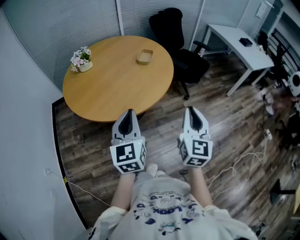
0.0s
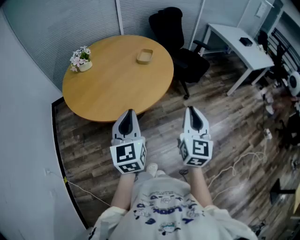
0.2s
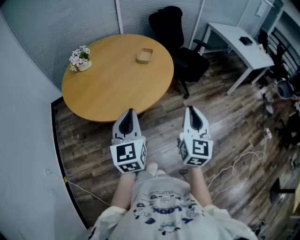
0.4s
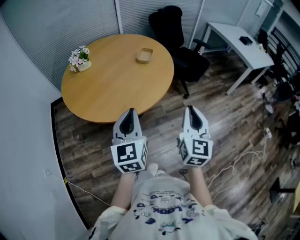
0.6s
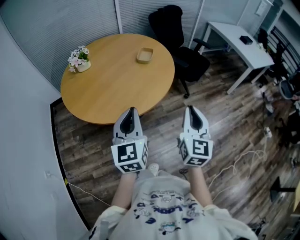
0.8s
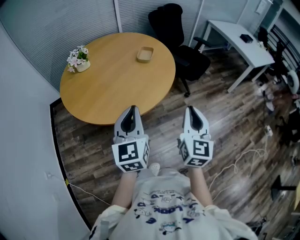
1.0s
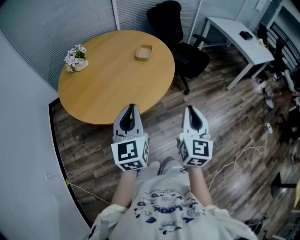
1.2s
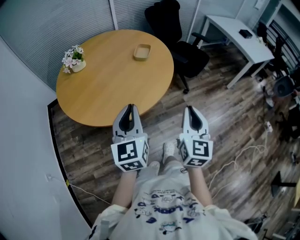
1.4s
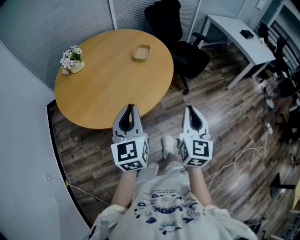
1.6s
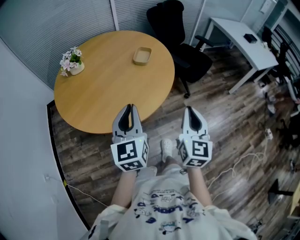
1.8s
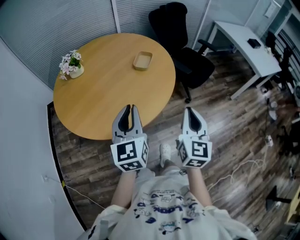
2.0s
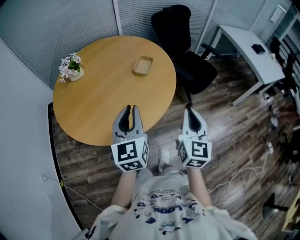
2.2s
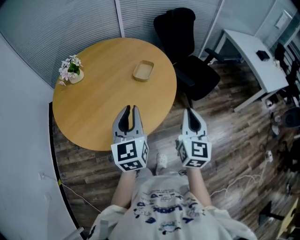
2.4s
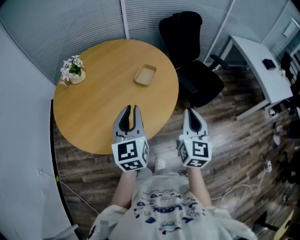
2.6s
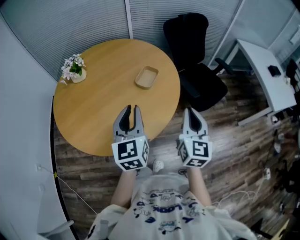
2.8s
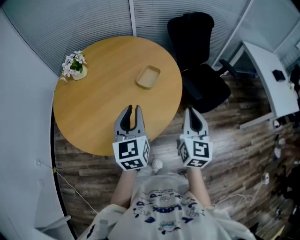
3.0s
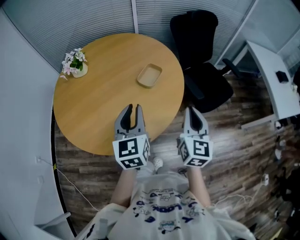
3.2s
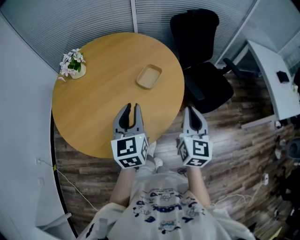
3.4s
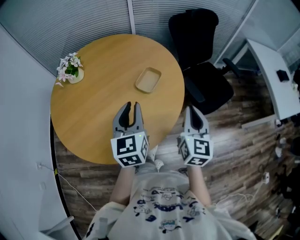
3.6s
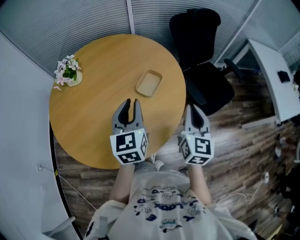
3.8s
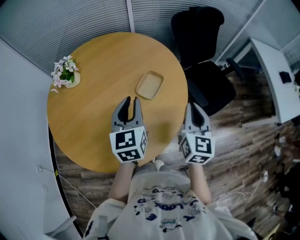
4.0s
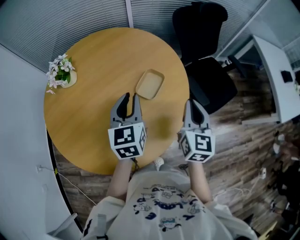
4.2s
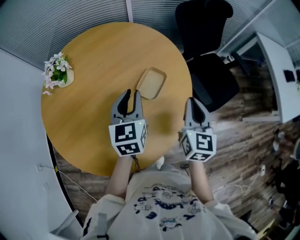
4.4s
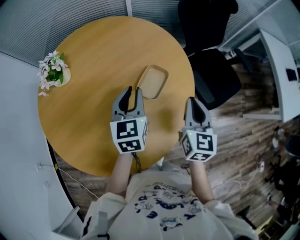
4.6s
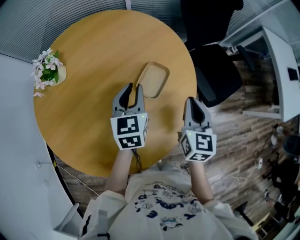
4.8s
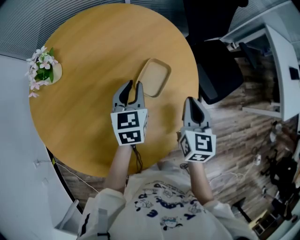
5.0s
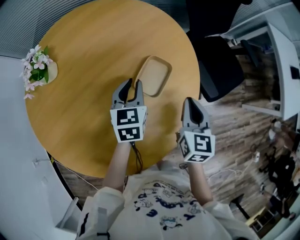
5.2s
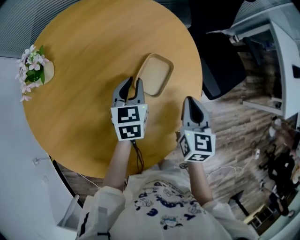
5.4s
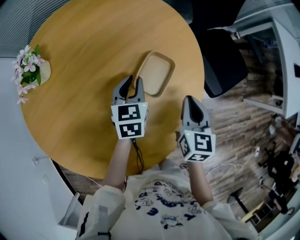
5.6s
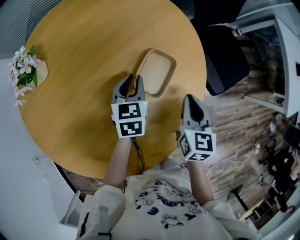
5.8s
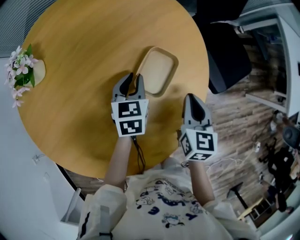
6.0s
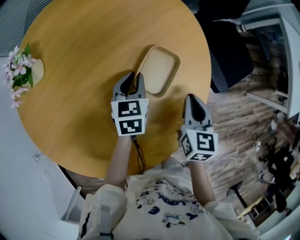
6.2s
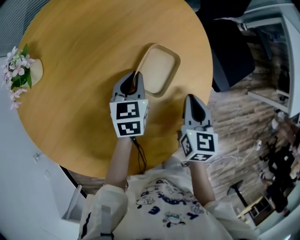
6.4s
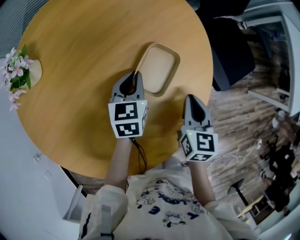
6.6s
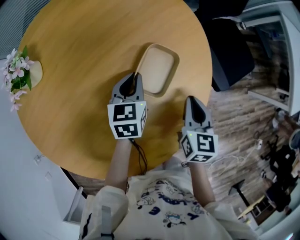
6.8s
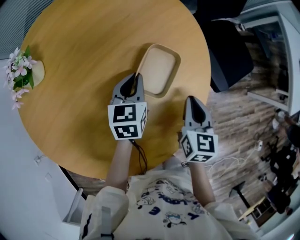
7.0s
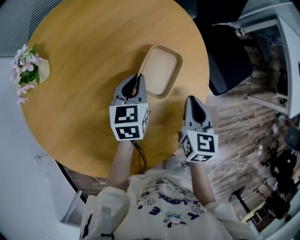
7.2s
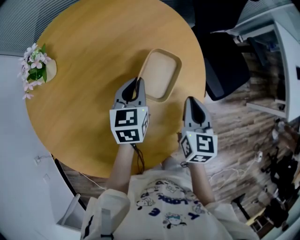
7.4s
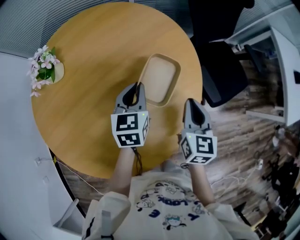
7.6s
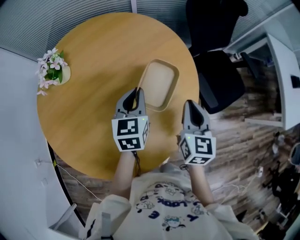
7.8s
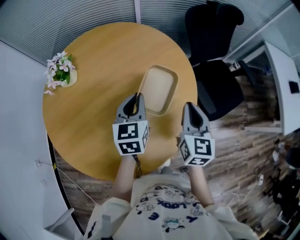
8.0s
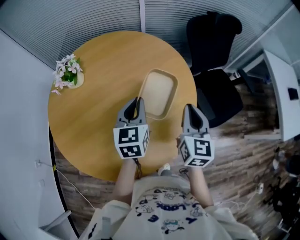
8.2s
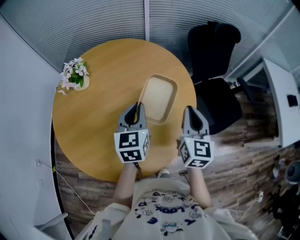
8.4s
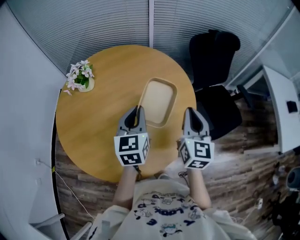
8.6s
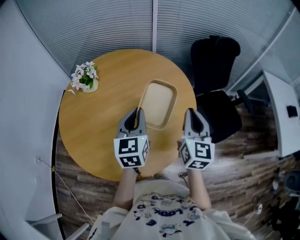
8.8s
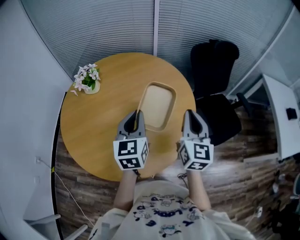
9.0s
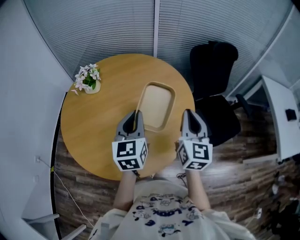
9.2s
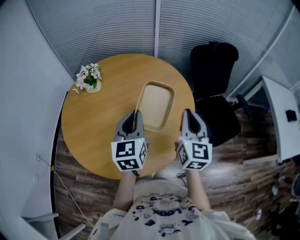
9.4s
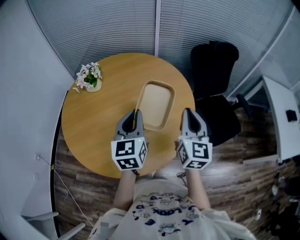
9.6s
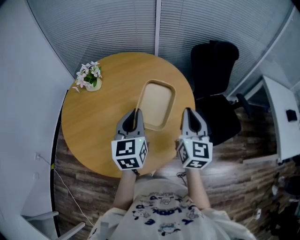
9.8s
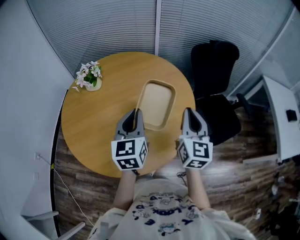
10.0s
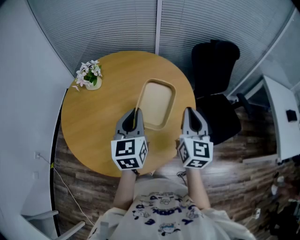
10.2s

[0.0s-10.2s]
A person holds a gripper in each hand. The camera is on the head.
0.0s to 1.4s: The right gripper ends up some 5 cm from where it was. Meanwhile the left gripper is displaced forward by roughly 5 cm.
1.4s to 3.0s: Both grippers move forward, about 30 cm.
3.0s to 4.4s: The two grippers go roughly 20 cm forward.
4.4s to 5.8s: The right gripper heads downward, covering about 15 cm; the left gripper goes approximately 20 cm downward and forward, and rotates some 20 degrees.
5.8s to 7.2s: The grippers move only a little.
7.2s to 8.8s: The left gripper heads upward and backward, covering some 30 cm, and turns by approximately 30 degrees; the right gripper is displaced upward by roughly 25 cm, and turns by roughly 30 degrees.
8.8s to 10.2s: The grippers move only a little.

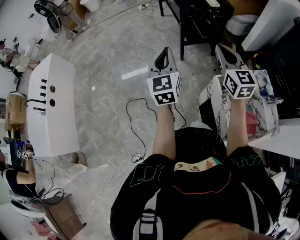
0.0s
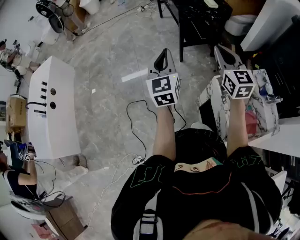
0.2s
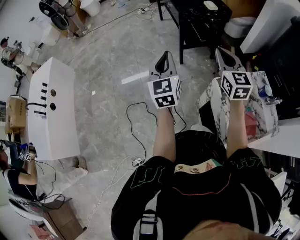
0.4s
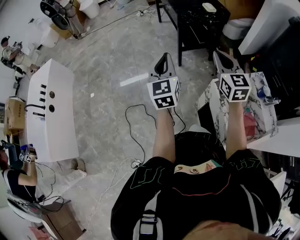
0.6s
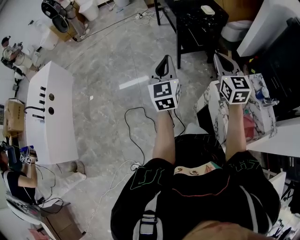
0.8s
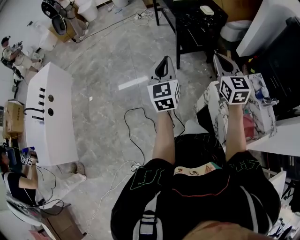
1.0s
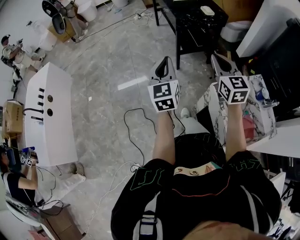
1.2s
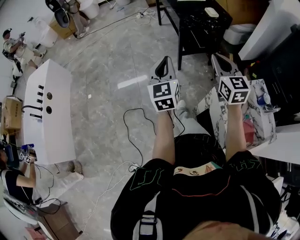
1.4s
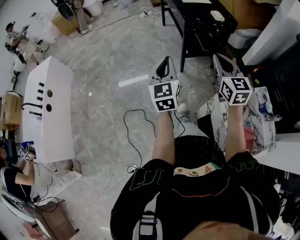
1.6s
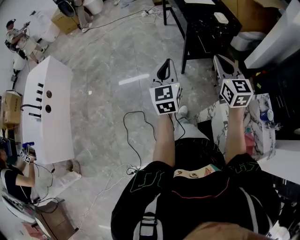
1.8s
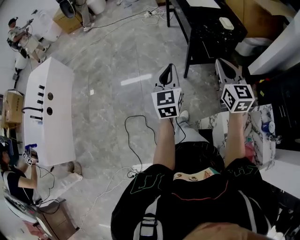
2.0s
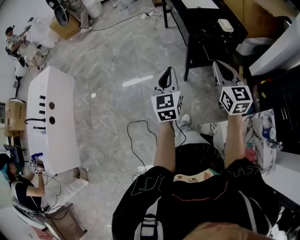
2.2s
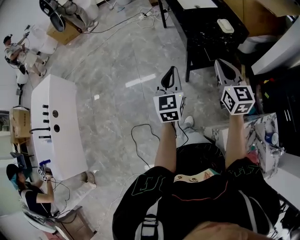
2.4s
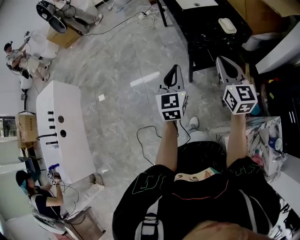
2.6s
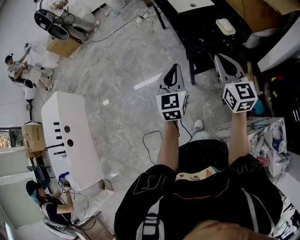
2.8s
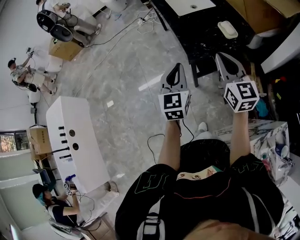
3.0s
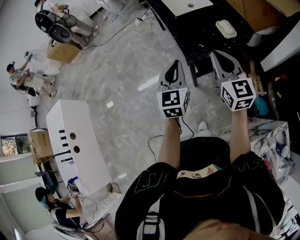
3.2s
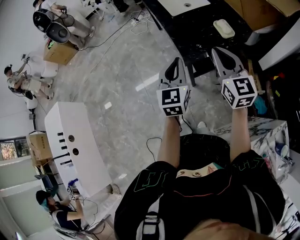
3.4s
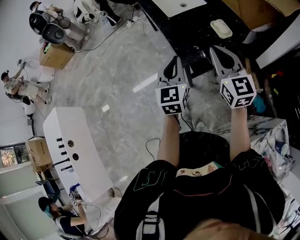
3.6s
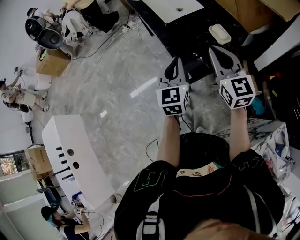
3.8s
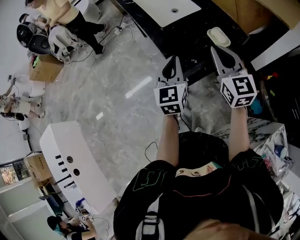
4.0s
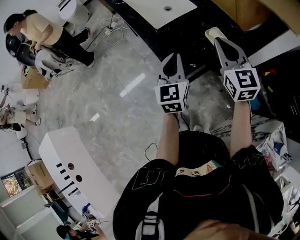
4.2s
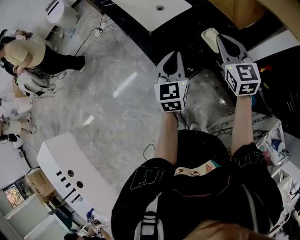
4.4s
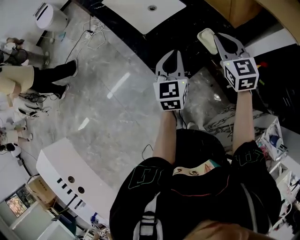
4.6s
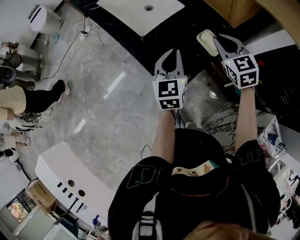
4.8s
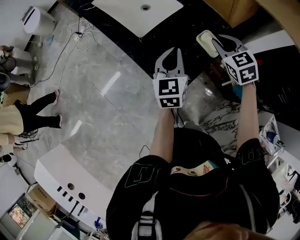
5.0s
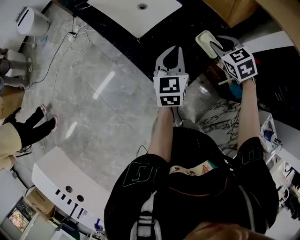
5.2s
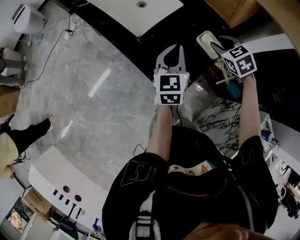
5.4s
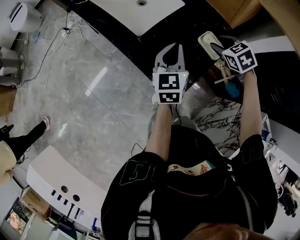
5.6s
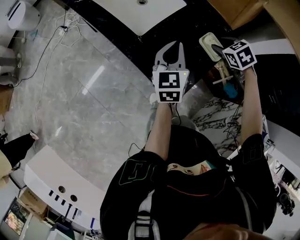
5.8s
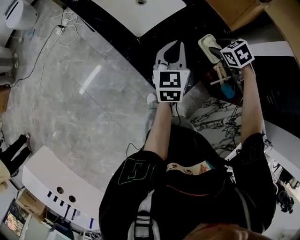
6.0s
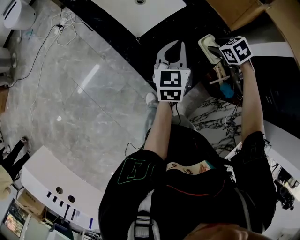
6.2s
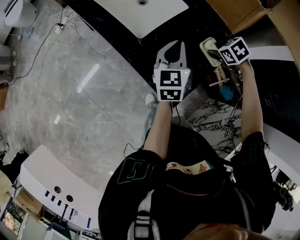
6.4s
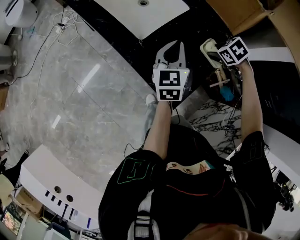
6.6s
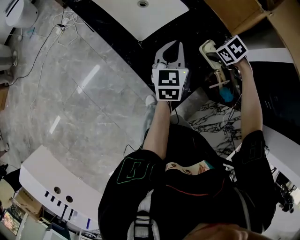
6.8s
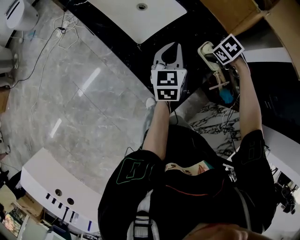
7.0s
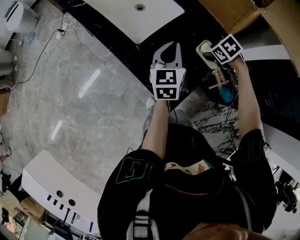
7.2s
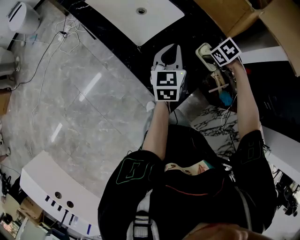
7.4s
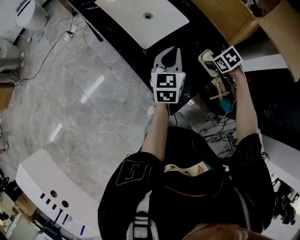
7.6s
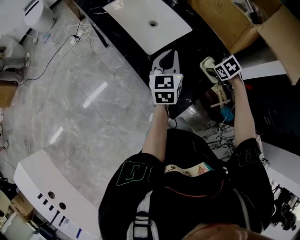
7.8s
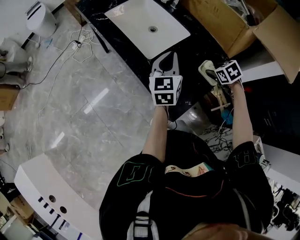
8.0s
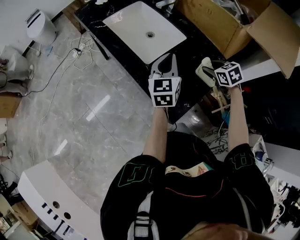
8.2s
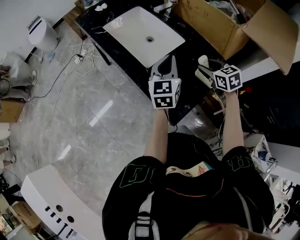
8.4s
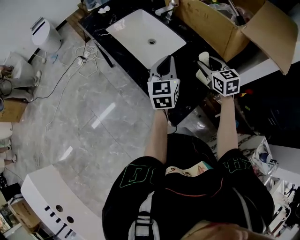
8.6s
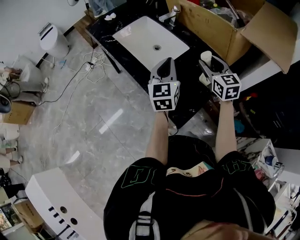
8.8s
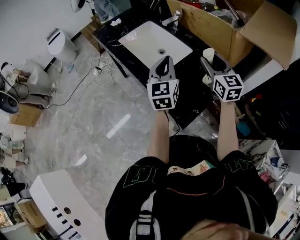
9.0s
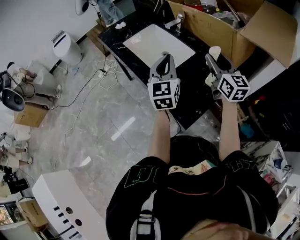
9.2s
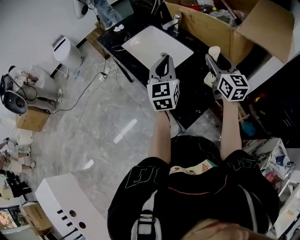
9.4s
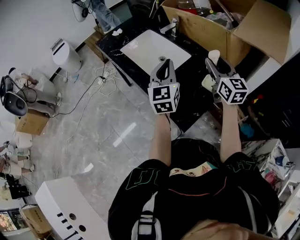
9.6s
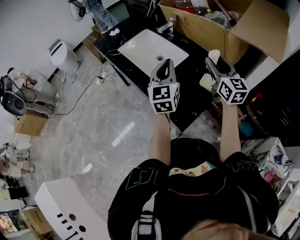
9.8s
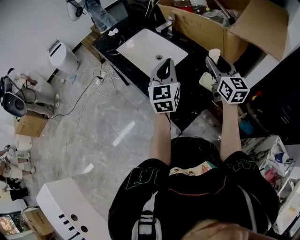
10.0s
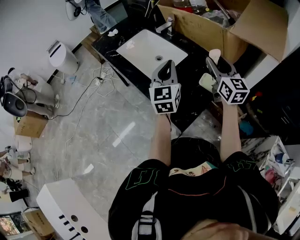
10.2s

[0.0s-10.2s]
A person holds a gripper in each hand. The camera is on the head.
0.0s to 1.4s: The grippers make only small movements.
1.4s to 3.0s: Both grippers travel together forward, roughly 40 cm.
3.0s to 4.4s: The two grippers go roughly 25 cm forward. The right gripper changes its angle by some 30 degrees.
4.4s to 5.8s: The right gripper travels downward and forward by some 20 cm, tilts its fingers roughly 50 degrees downward, and opens. Meanwhile the left gripper moves forward and downward, approximately 15 cm.
7.2s to 8.8s: The left gripper heads upward, covering some 10 cm; the right gripper is displaced upward by approximately 20 cm, and angles its fingers upward, by roughly 60 degrees.
8.8s to 10.2s: The right gripper moves upward, some 5 cm, and turns by approximately 20 degrees. The left gripper ends up roughly 5 cm from where it was.

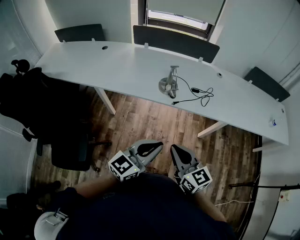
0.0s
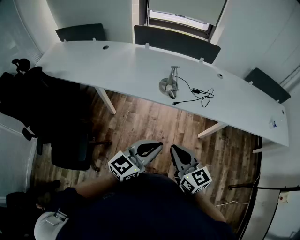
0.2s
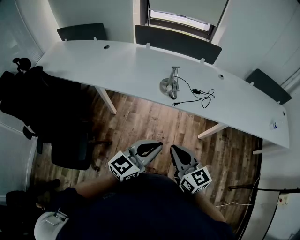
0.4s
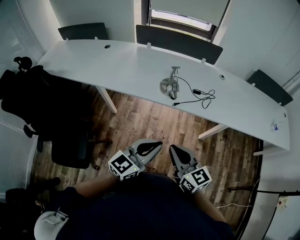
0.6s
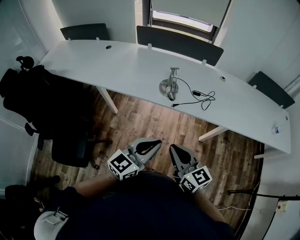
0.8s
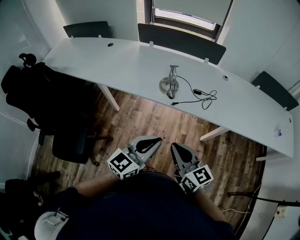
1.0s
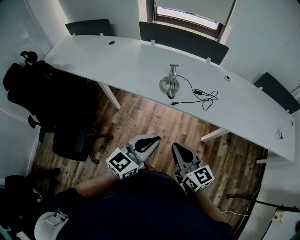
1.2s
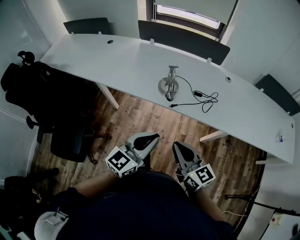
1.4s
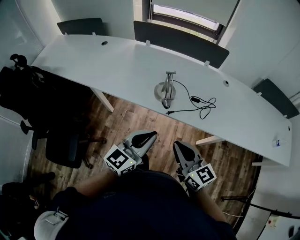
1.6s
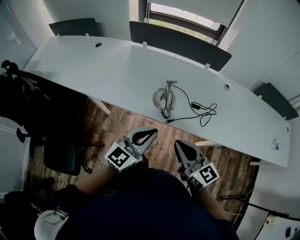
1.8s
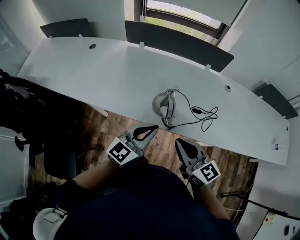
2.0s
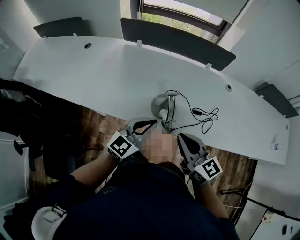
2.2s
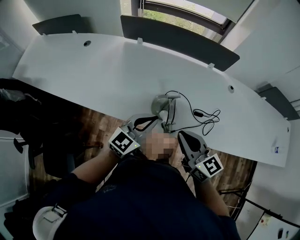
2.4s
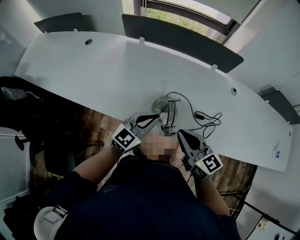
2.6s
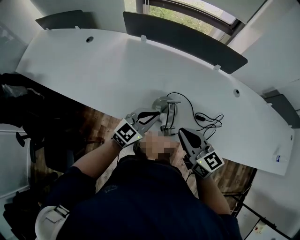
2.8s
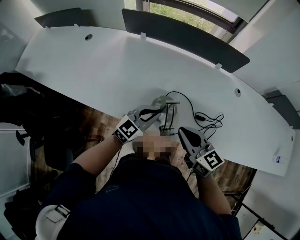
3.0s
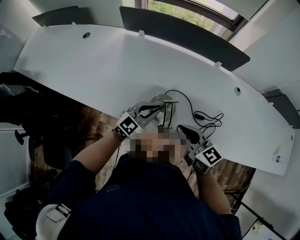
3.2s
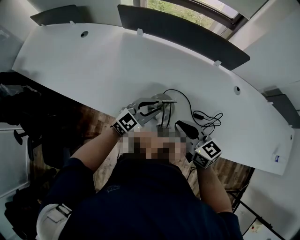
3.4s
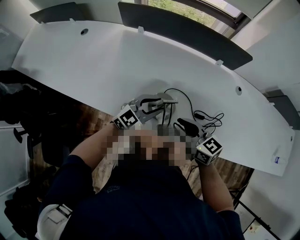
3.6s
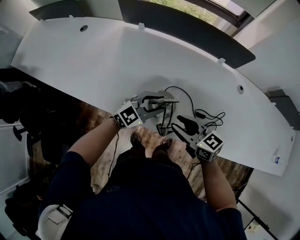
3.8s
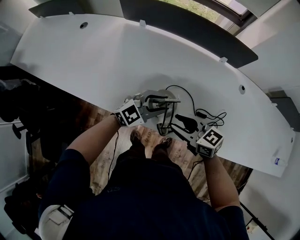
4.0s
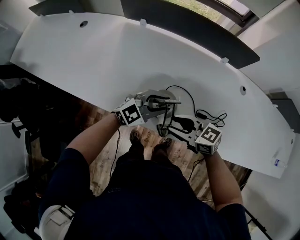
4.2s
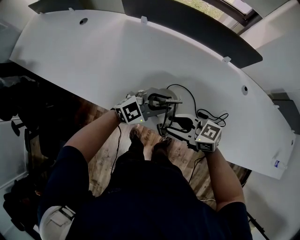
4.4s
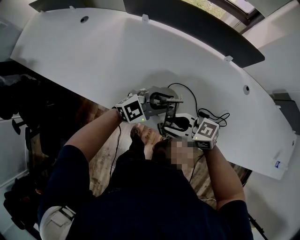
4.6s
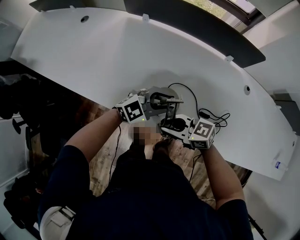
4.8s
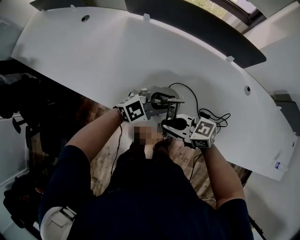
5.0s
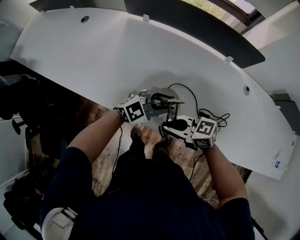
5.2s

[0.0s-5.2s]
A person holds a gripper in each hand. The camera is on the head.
0.0s to 1.8s: The grippers both shift forward by roughly 20 cm.
1.8s to 3.4s: The right gripper goes about 25 cm forward; the left gripper shifts about 30 cm forward and downward, and changes its angle by roughly 20 degrees.
3.4s to 5.2s: The right gripper moves downward, approximately 5 cm, swivels approximately 40 degrees, and opens and closes again.
